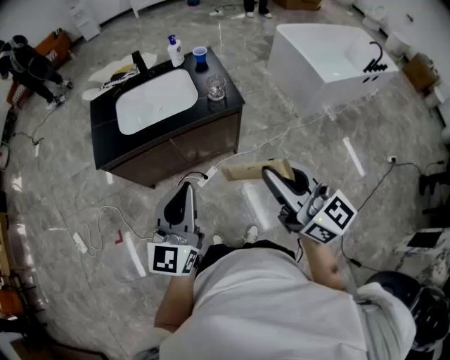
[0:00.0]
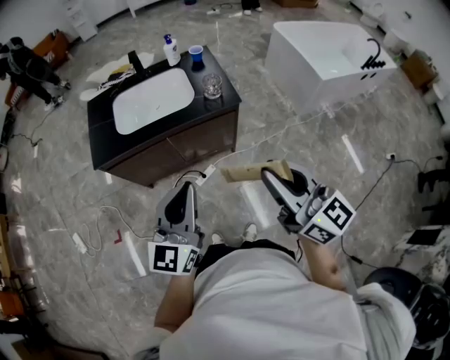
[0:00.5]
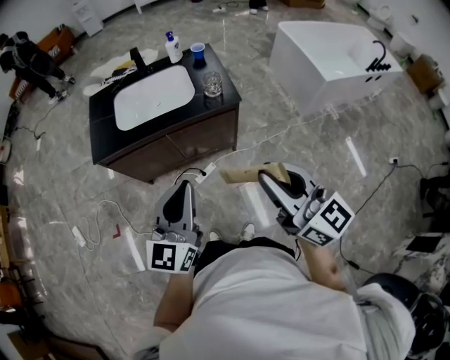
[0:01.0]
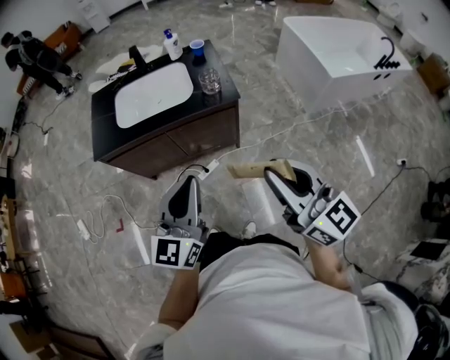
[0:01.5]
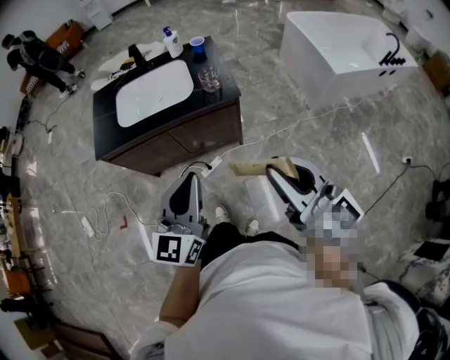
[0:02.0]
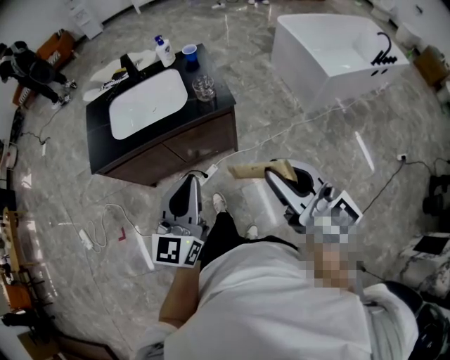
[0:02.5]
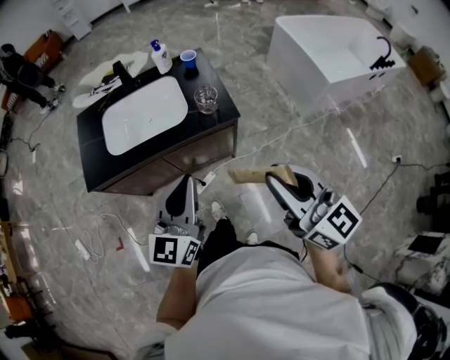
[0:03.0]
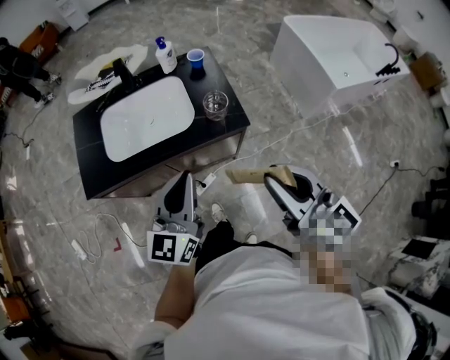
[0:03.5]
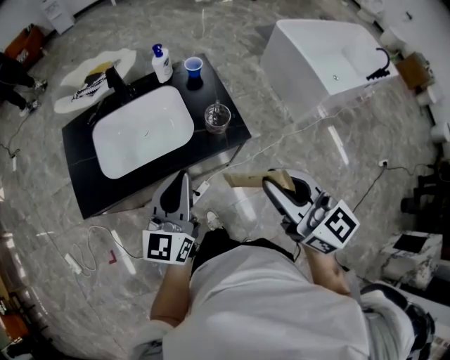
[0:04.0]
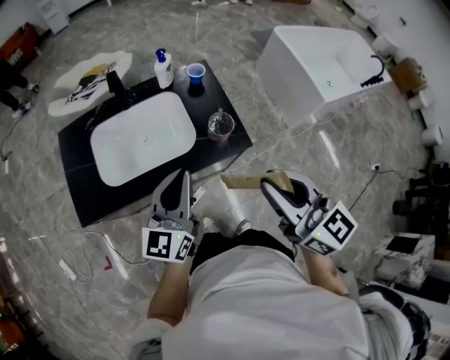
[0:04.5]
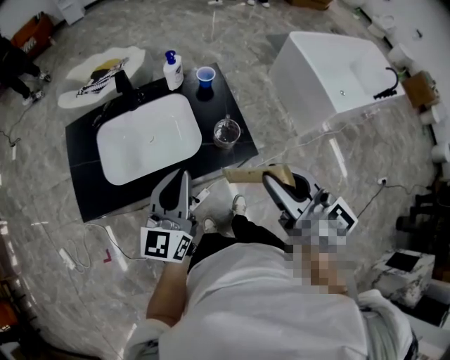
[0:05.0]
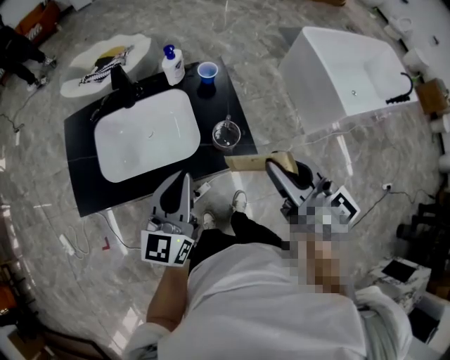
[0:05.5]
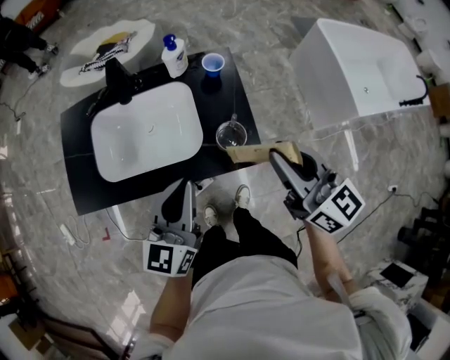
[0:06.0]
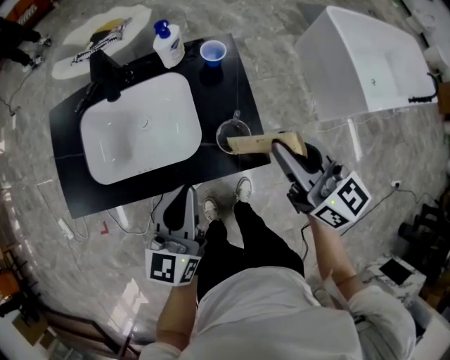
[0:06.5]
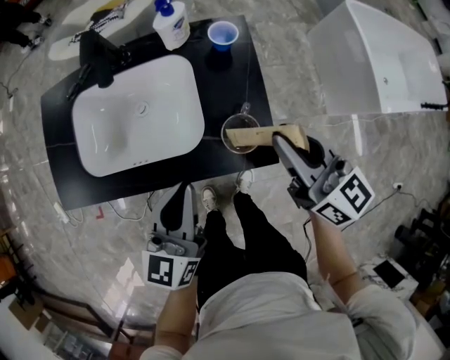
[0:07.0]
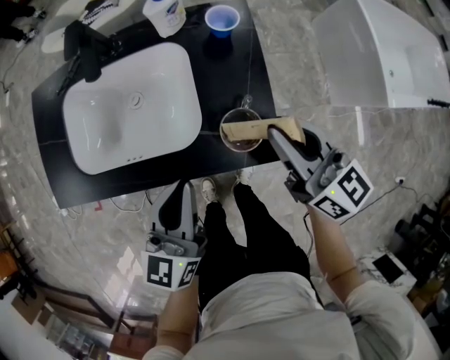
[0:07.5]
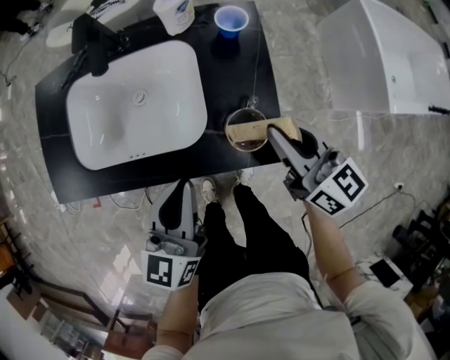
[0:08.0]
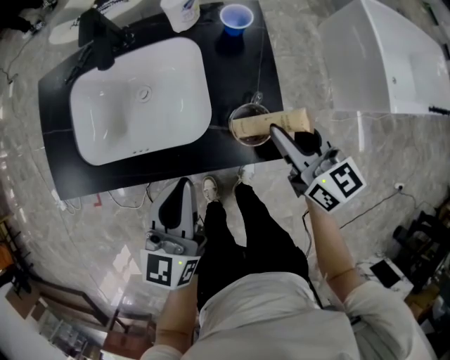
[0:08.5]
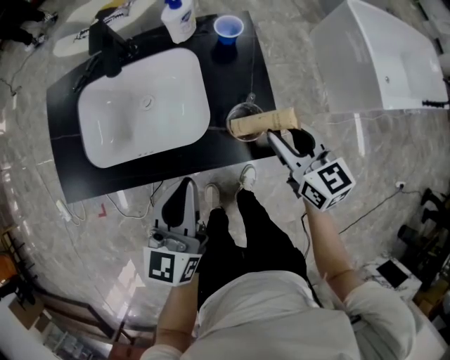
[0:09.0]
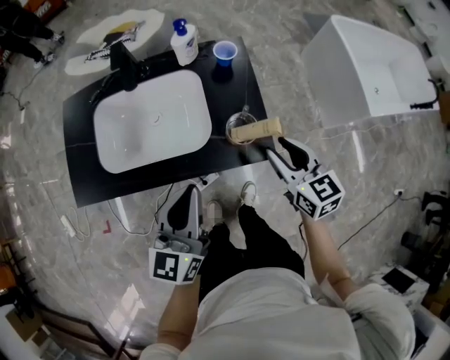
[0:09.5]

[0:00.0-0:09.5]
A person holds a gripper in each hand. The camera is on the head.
0:00.0 to 0:02.0: Both grippers move to the right, roughly 10 cm.
0:02.0 to 0:04.0: The grippers both shift forward by approximately 25 cm.
0:04.0 to 0:05.5: The right gripper is displaced forward by approximately 15 cm. Meanwhile the left gripper is displaced forward by approximately 5 cm.
0:05.5 to 0:07.5: The left gripper heads downward, covering roughly 15 cm. Meanwhile the right gripper moves downward and forward, roughly 20 cm.
0:07.5 to 0:09.5: The left gripper is displaced upward by about 5 cm; the right gripper heads backward, covering approximately 5 cm, swivels roughly 20 degrees, and opens.

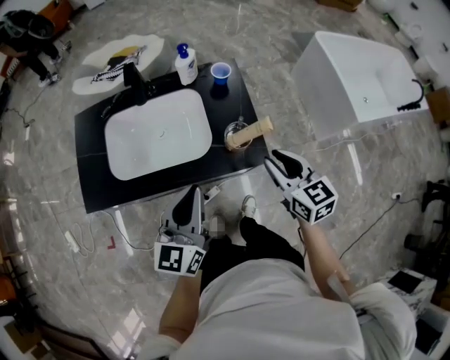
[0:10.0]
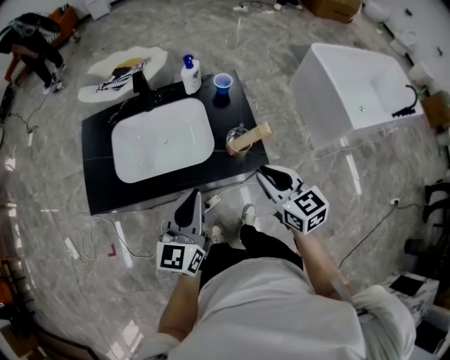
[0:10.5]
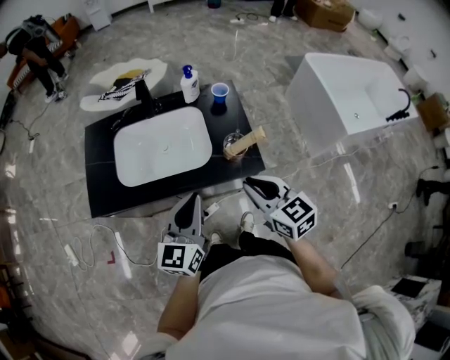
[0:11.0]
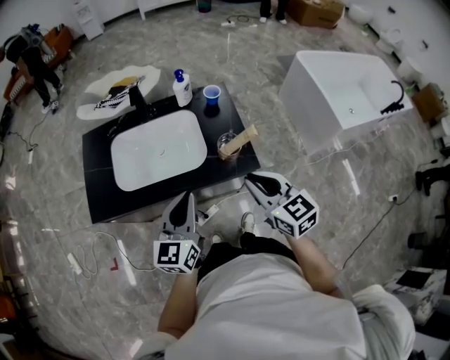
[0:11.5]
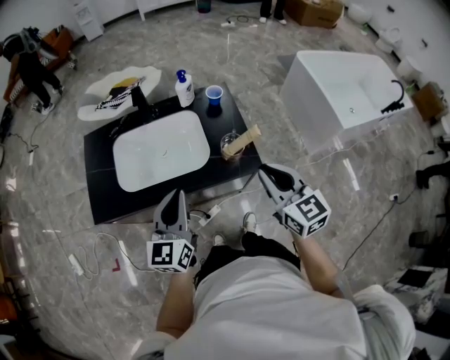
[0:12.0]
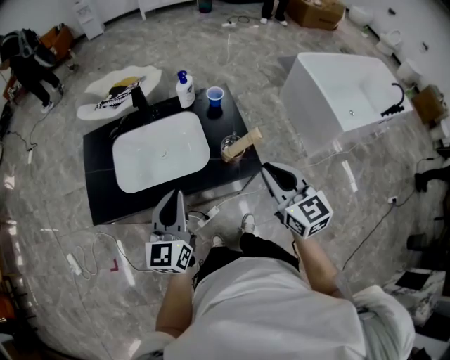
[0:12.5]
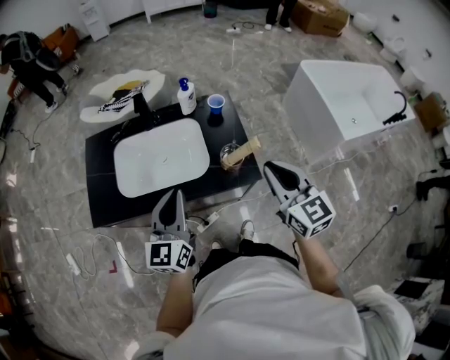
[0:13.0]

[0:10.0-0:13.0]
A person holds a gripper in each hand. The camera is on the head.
0:10.0 to 0:11.5: The right gripper goes roughly 10 cm backward, to the left and upward.
0:11.5 to 0:13.0: The left gripper changes place by approximately 5 cm. The right gripper goes about 5 cm upward.

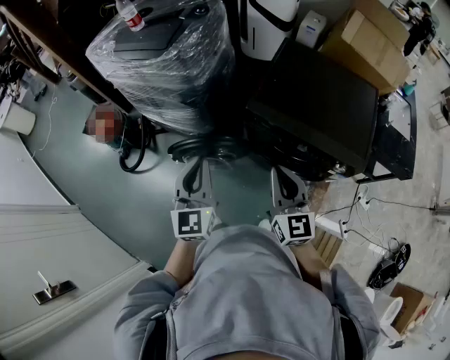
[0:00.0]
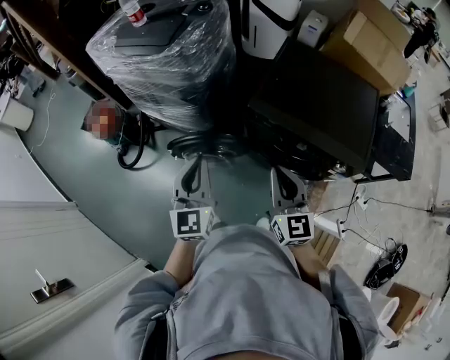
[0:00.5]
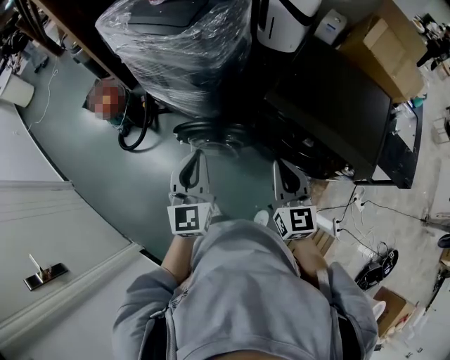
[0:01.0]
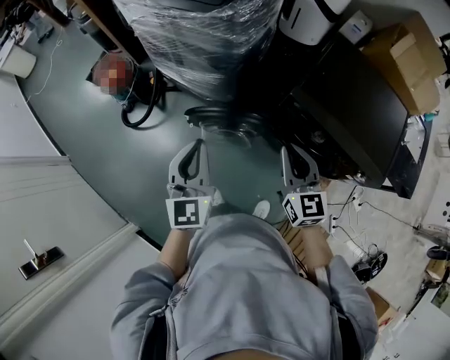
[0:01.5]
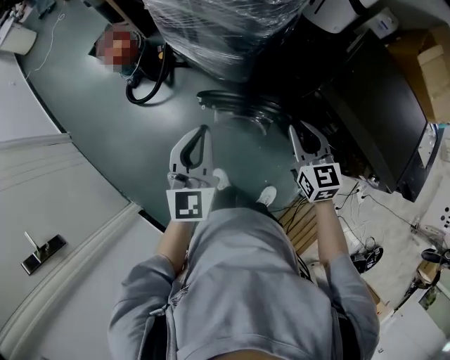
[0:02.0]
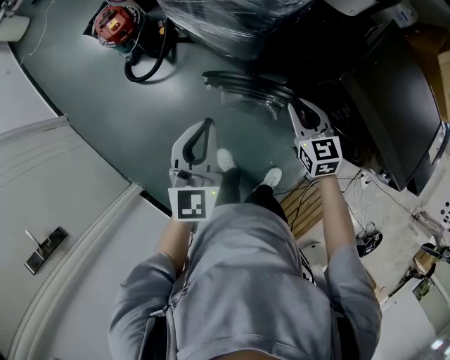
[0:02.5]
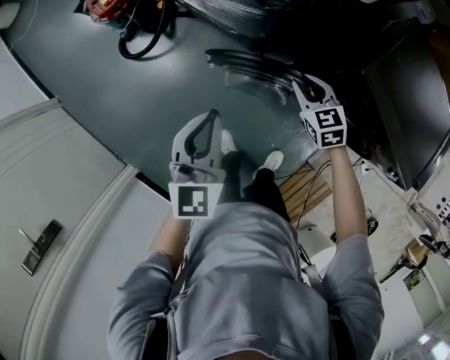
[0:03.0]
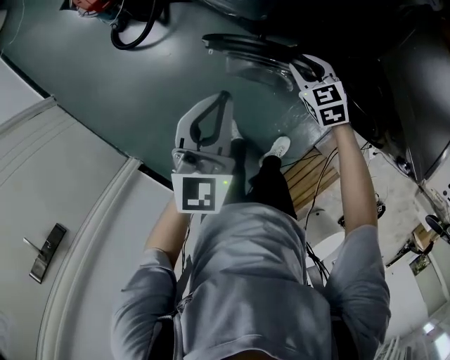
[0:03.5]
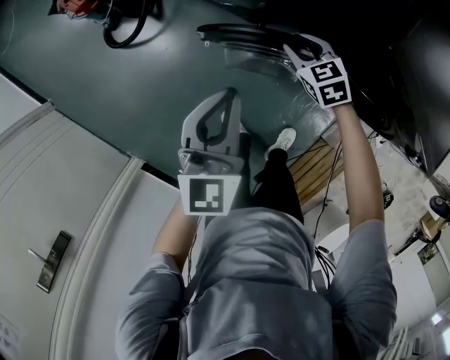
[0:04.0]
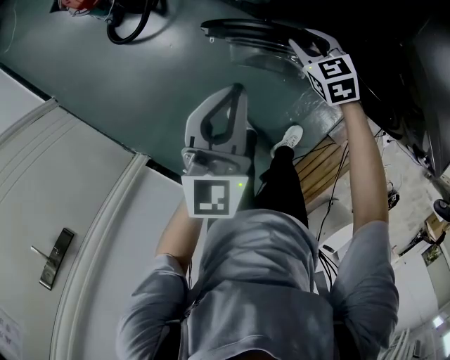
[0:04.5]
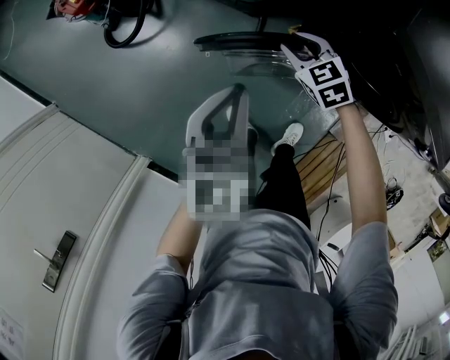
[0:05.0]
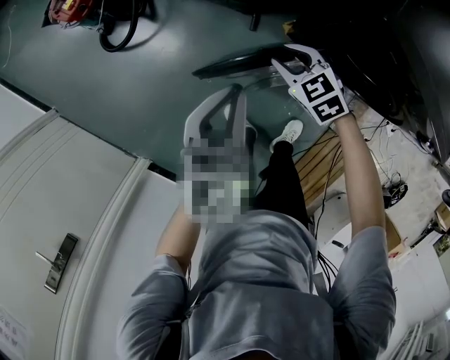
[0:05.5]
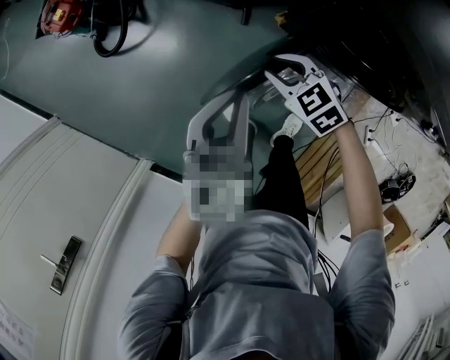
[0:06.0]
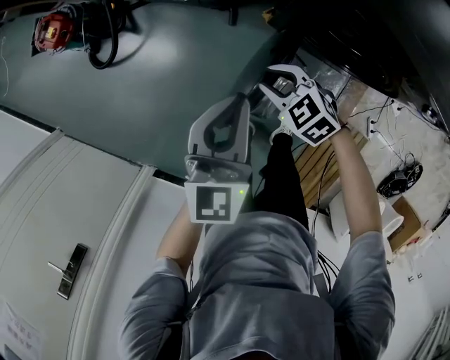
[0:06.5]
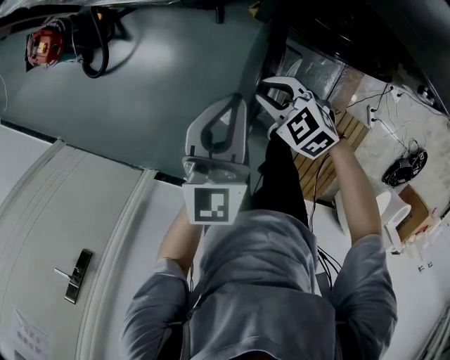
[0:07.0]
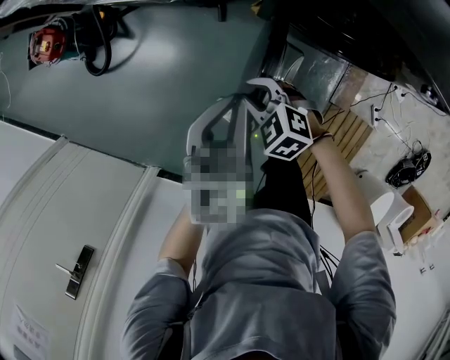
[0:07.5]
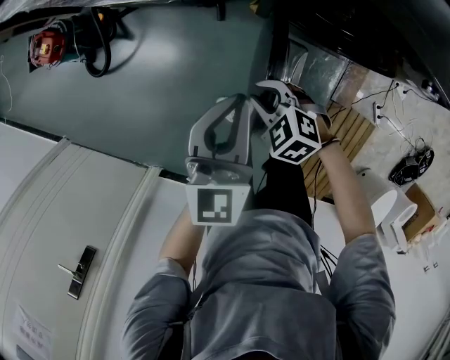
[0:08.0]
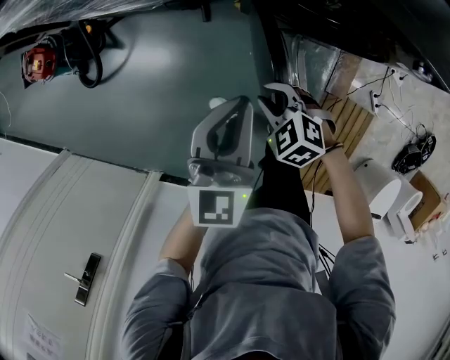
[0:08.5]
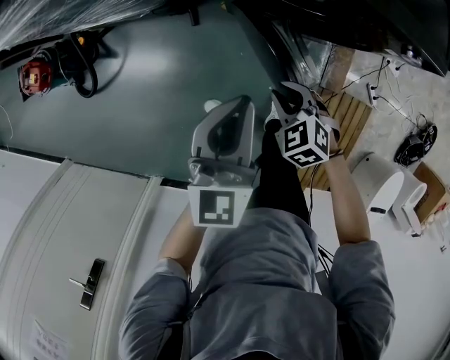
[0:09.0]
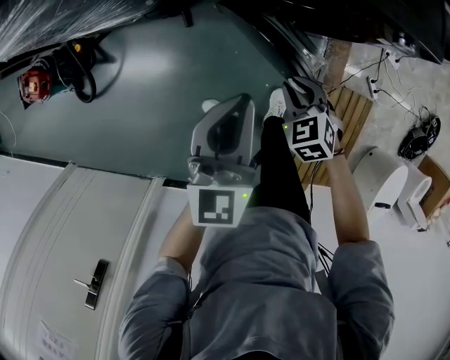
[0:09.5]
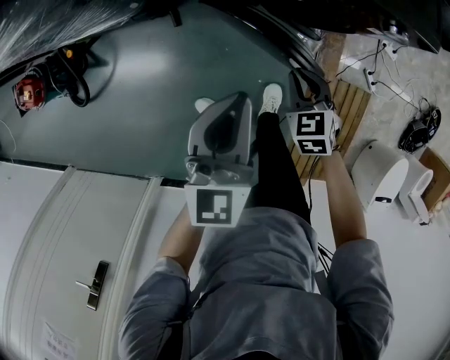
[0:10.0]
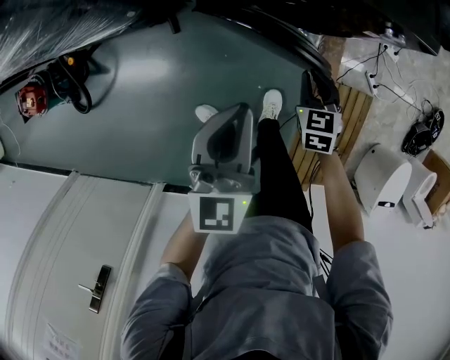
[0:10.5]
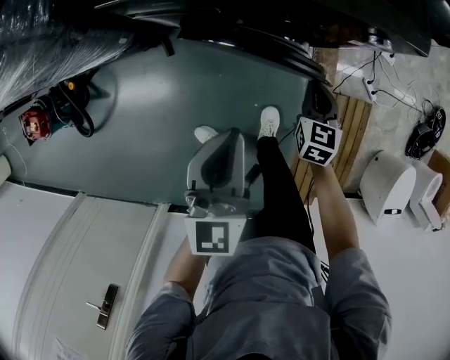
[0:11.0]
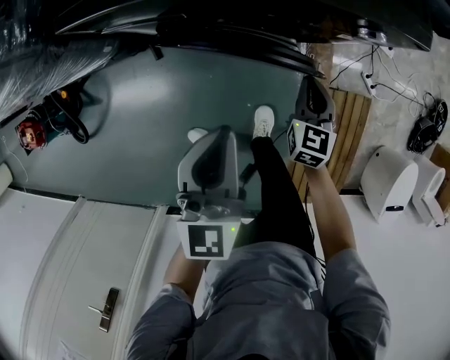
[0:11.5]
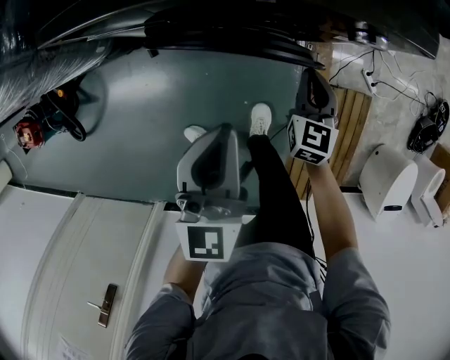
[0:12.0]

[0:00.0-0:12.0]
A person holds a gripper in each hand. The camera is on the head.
0:00.0 to 0:02.0: The left gripper is displaced to the left by about 20 cm, while the right gripper heads forward, to the left and downward, covering approximately 25 cm, and rotates approximately 30 degrees.
0:02.0 to 0:04.0: The left gripper moves downward, roughly 15 cm. The right gripper heads downward and forward, covering about 30 cm, and turns by some 30 degrees.
0:04.0 to 0:06.0: The right gripper goes about 15 cm backward. The left gripper goes roughly 10 cm to the right and backward.
0:06.0 to 0:08.0: The left gripper is displaced to the right and backward by about 10 cm. The right gripper shifts roughly 10 cm backward.
0:08.0 to 0:10.0: The right gripper moves some 25 cm, and swivels approximately 50 degrees; the left gripper moves about 15 cm.
0:10.0 to 0:12.0: Both grippers travel together to the right and forward, approximately 15 cm. The right gripper swivels about 40 degrees.

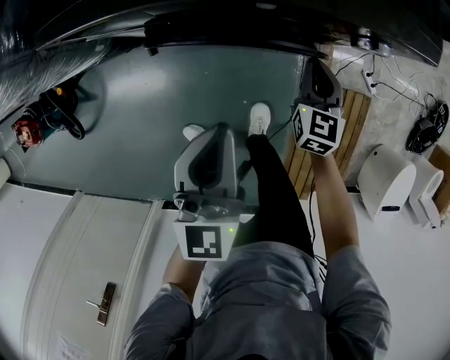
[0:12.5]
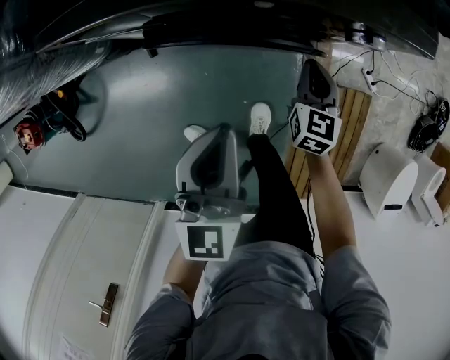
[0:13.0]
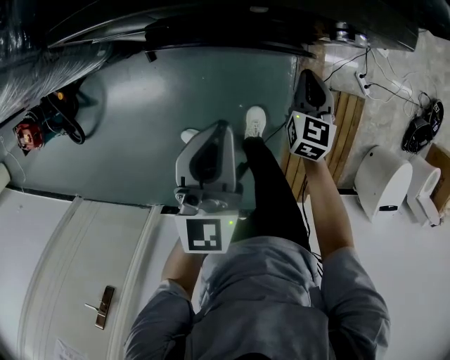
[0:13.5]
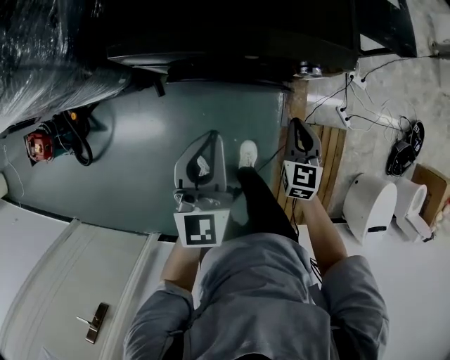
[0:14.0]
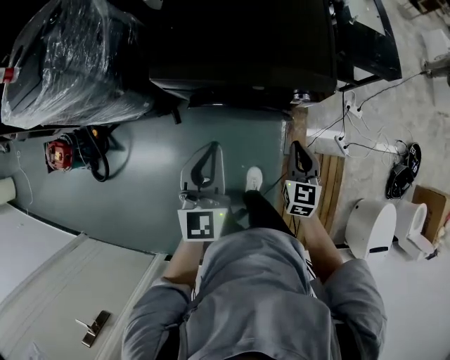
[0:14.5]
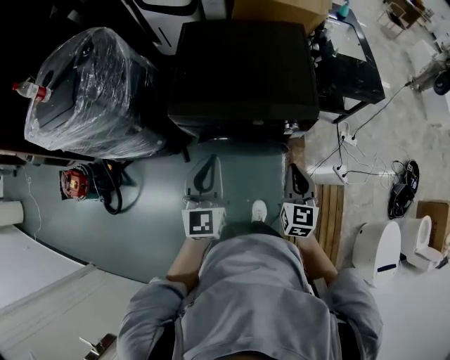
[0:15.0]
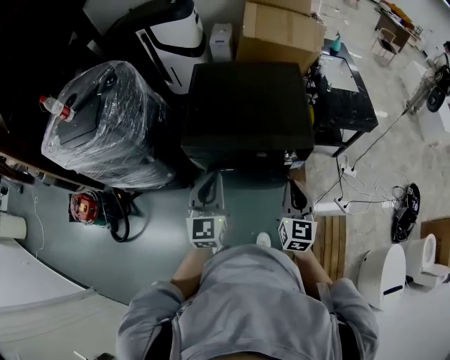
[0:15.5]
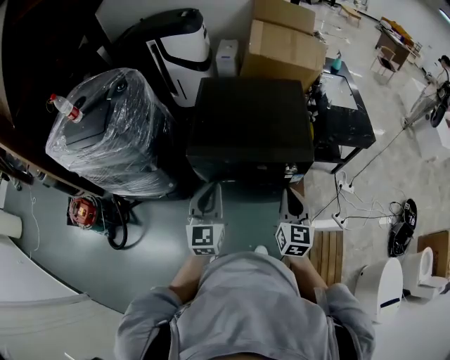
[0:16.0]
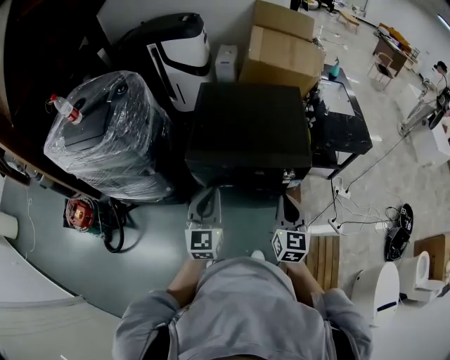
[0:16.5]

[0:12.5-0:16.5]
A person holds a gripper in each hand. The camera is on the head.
0:12.5 to 0:14.5: The right gripper moves upward and backward, approximately 25 cm; the left gripper heads upward, covering roughly 20 cm.
0:14.5 to 0:16.5: The right gripper shifts approximately 20 cm upward. The left gripper moves upward and to the left, some 10 cm.
